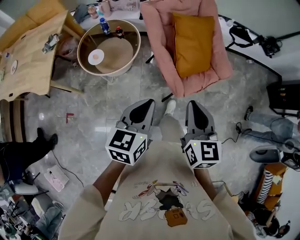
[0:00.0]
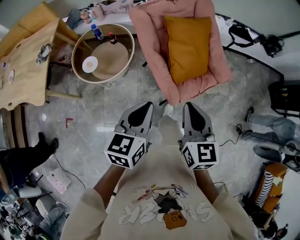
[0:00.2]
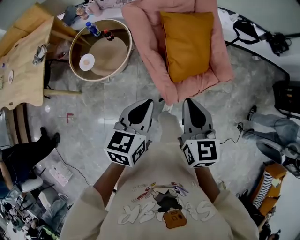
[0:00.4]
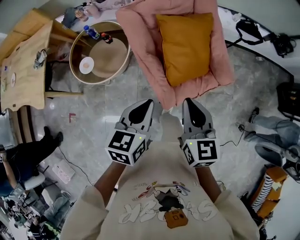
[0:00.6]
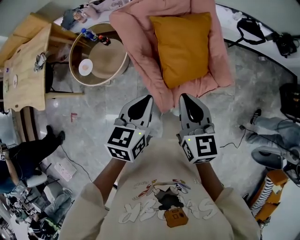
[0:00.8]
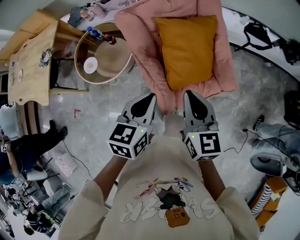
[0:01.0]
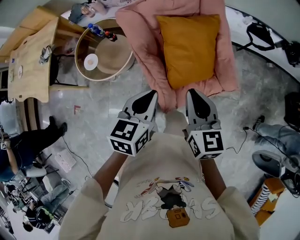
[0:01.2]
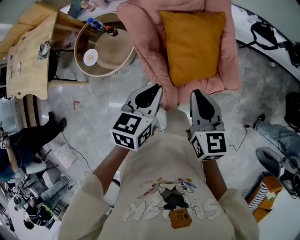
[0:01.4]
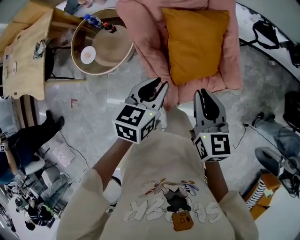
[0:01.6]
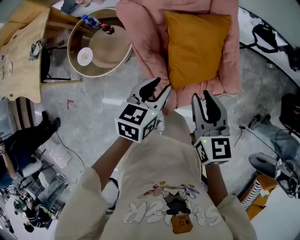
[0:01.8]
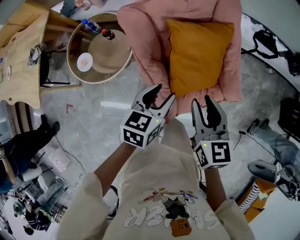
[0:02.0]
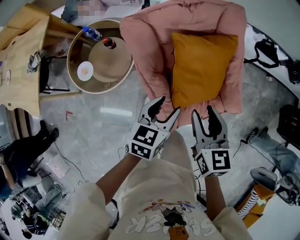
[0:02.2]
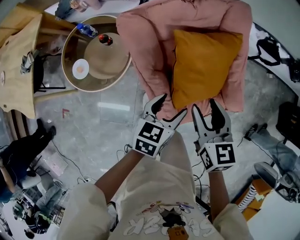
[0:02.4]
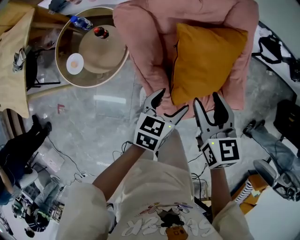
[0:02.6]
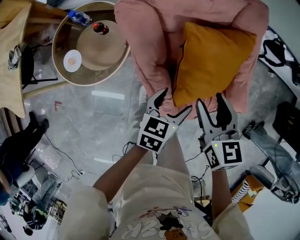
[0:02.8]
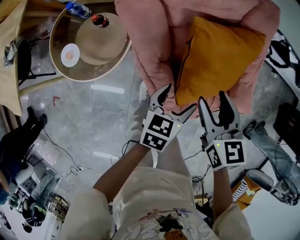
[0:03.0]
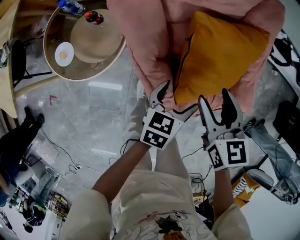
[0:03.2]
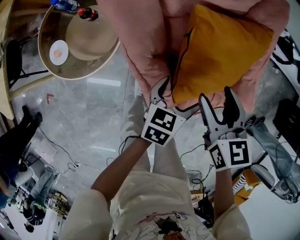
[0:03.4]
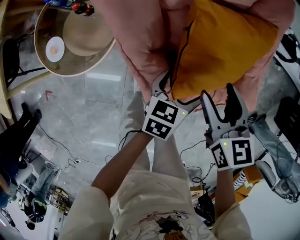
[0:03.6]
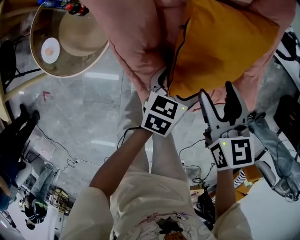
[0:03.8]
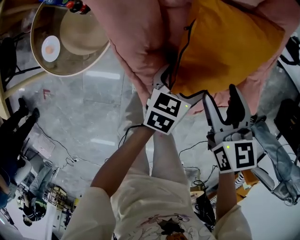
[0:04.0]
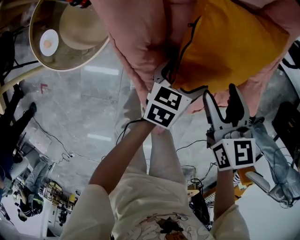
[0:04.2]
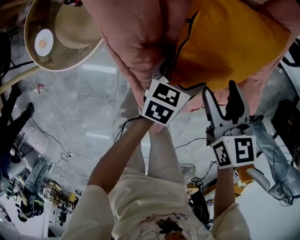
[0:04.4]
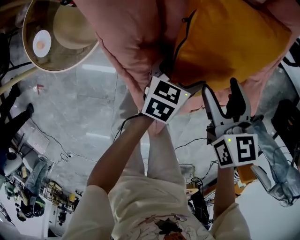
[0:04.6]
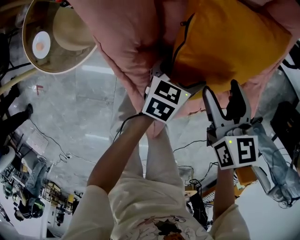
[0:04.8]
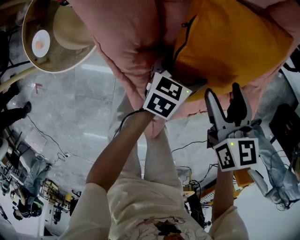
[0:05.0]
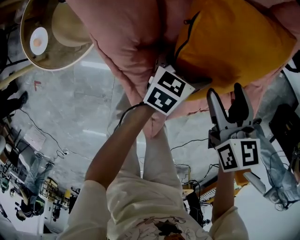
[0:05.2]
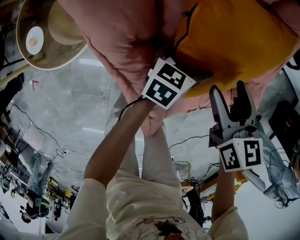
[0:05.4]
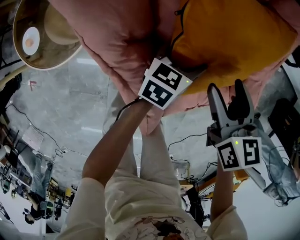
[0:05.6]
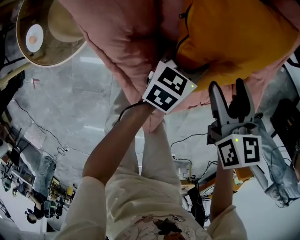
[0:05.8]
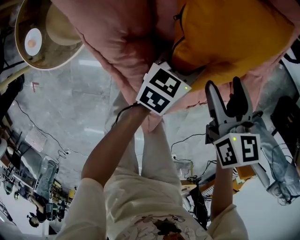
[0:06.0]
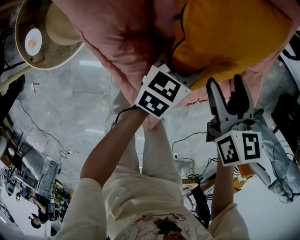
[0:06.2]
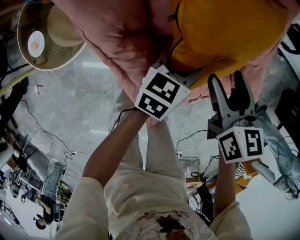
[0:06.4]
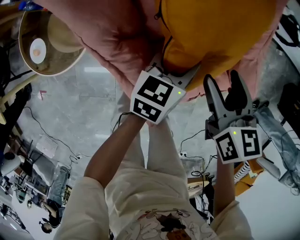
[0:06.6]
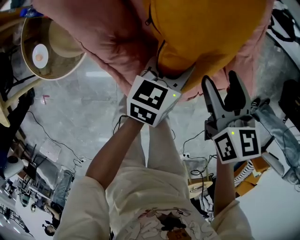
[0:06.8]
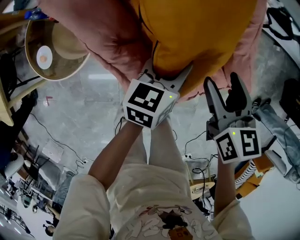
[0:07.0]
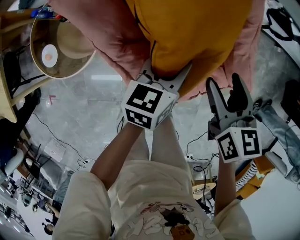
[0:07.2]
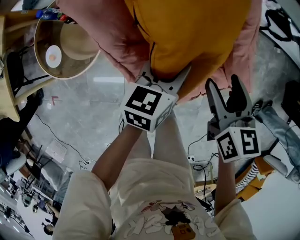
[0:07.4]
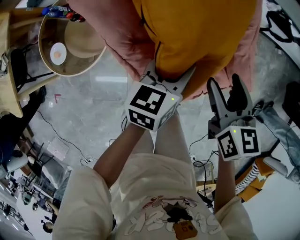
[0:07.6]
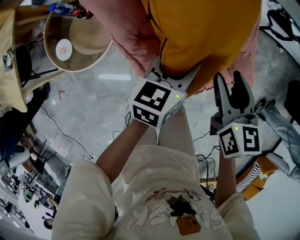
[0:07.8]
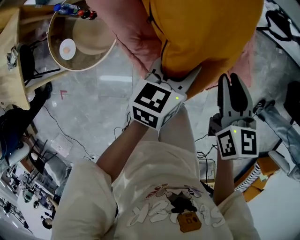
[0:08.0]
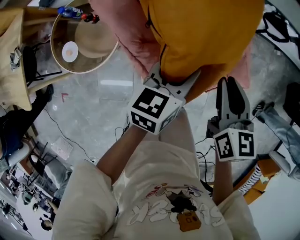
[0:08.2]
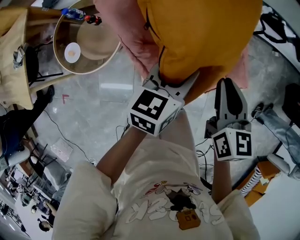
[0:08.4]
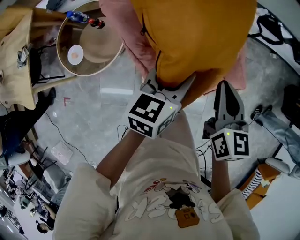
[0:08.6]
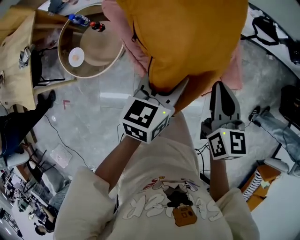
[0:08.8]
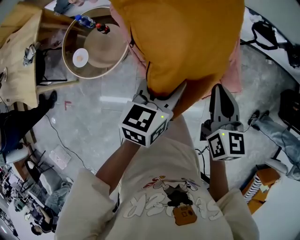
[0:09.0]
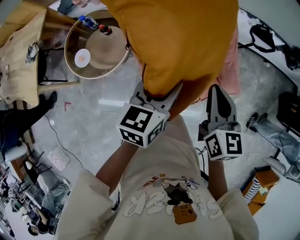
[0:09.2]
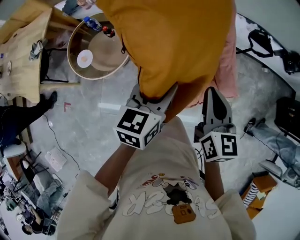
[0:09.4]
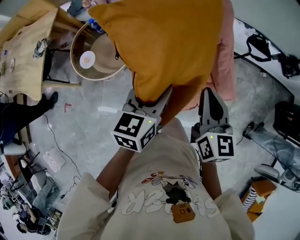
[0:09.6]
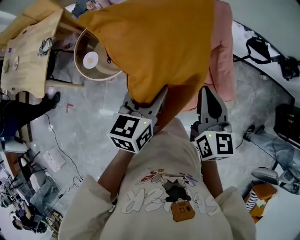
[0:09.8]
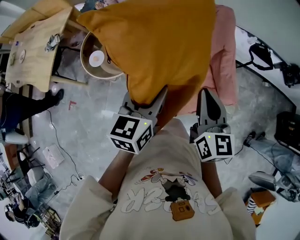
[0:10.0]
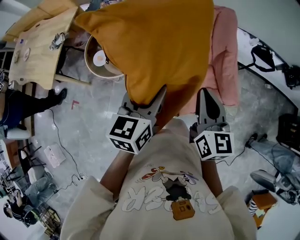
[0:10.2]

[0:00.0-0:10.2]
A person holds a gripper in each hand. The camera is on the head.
0:00.0 to 0:01.4: The two grippers go some 30 cm forward and to the right.
0:01.4 to 0:03.0: The left gripper moves downward and forward, roughly 25 cm, and opens its fingers, while the right gripper is displaced downward, forward and to the left by approximately 25 cm, and opens its fingers.
0:03.0 to 0:04.4: The right gripper goes about 10 cm downward. The left gripper is displaced downward and forward by some 15 cm.
0:04.4 to 0:05.8: The right gripper ends up about 5 cm from where it was, while the left gripper changes place by roughly 5 cm, and closes up.
0:05.8 to 0:07.2: Both grippers move upward, approximately 15 cm.
0:07.2 to 0:08.8: The grippers both shift upward and backward by roughly 20 cm. The right gripper closes.
0:08.8 to 0:10.2: Both grippers travel together backward, upward and to the left, approximately 20 cm. The left gripper changes its angle by roughly 20 degrees.

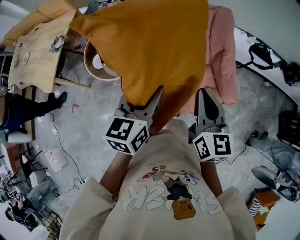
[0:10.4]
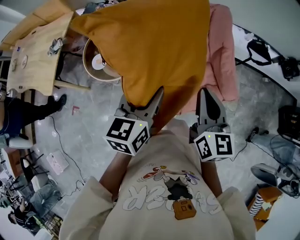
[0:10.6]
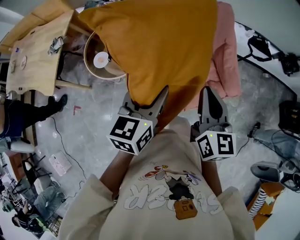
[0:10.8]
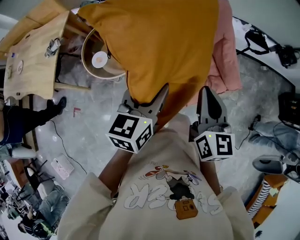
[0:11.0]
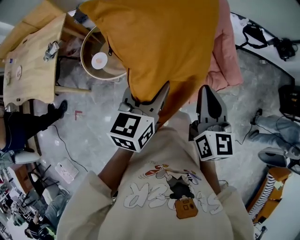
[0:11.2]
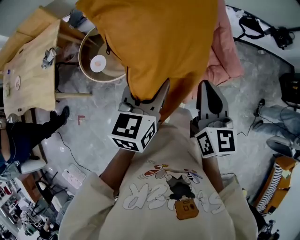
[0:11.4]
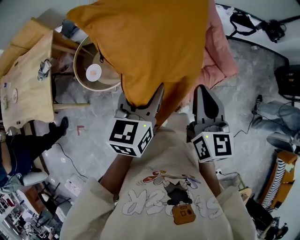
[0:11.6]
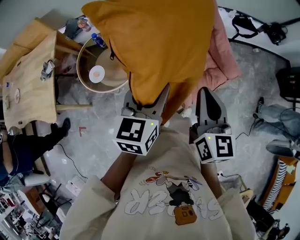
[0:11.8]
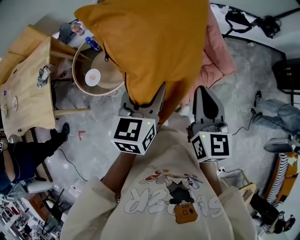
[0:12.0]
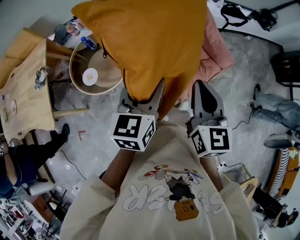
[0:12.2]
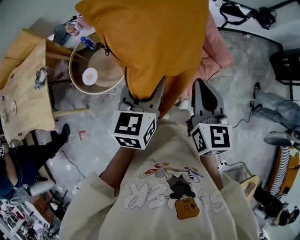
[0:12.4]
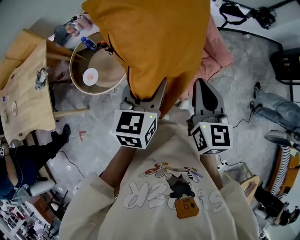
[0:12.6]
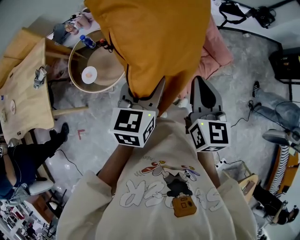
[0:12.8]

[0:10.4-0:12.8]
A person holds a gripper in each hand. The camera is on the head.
0:10.4 to 0:11.6: The left gripper heads to the left, covering some 10 cm. Meanwhile the right gripper goes some 10 cm to the left and backward.
0:11.6 to 0:12.8: There are only small adjustments of the grippers.

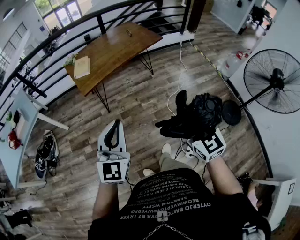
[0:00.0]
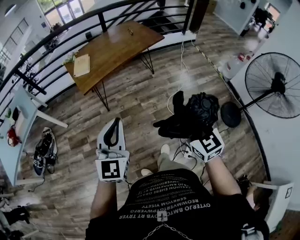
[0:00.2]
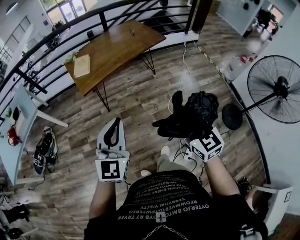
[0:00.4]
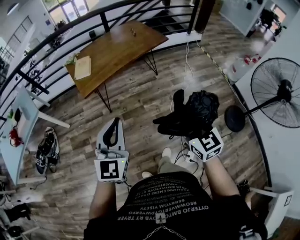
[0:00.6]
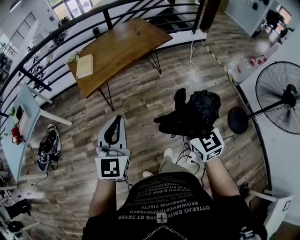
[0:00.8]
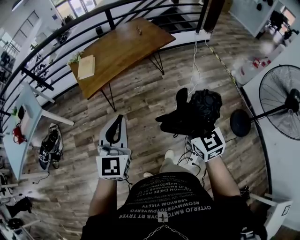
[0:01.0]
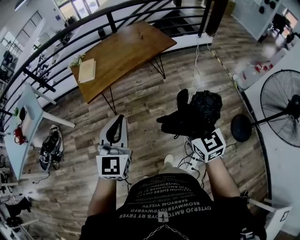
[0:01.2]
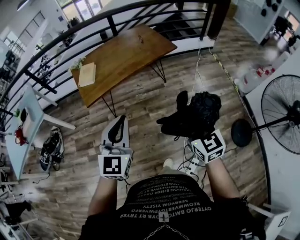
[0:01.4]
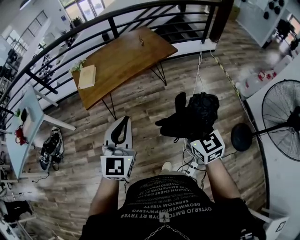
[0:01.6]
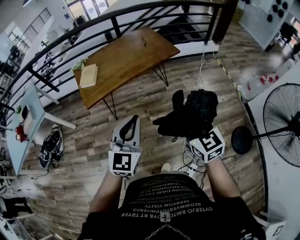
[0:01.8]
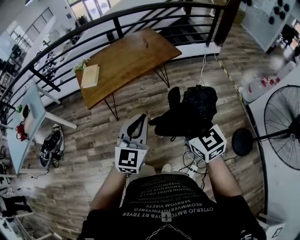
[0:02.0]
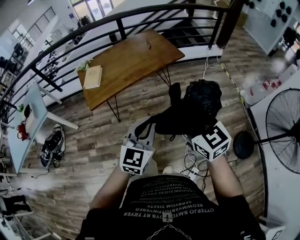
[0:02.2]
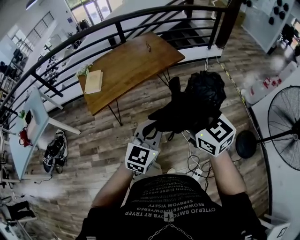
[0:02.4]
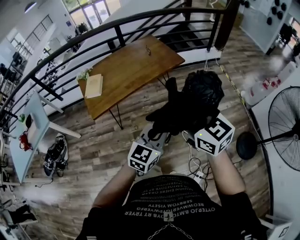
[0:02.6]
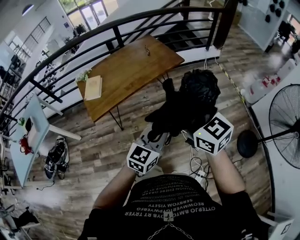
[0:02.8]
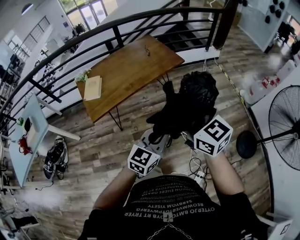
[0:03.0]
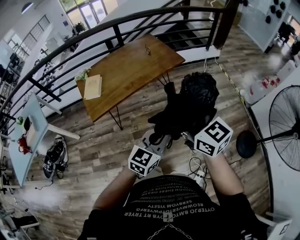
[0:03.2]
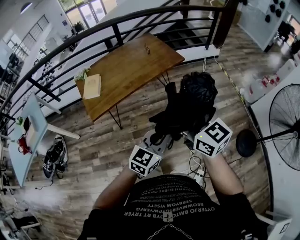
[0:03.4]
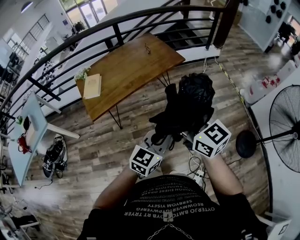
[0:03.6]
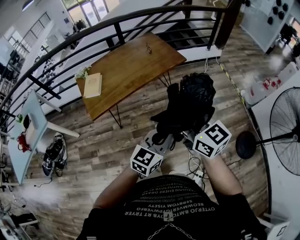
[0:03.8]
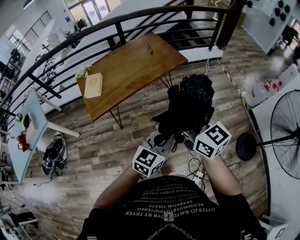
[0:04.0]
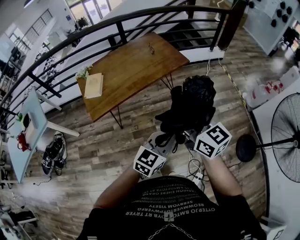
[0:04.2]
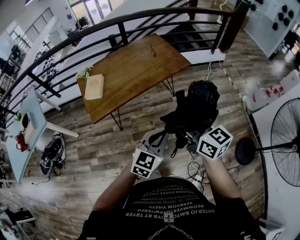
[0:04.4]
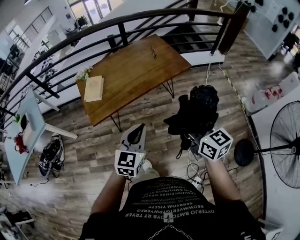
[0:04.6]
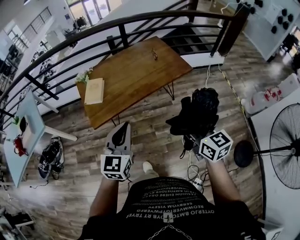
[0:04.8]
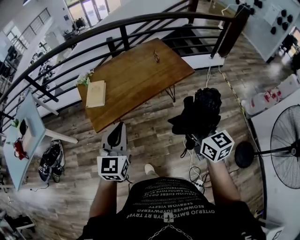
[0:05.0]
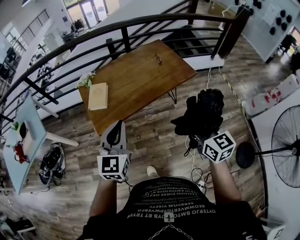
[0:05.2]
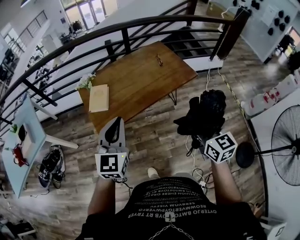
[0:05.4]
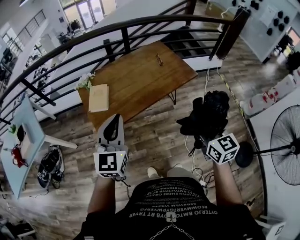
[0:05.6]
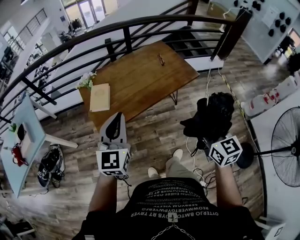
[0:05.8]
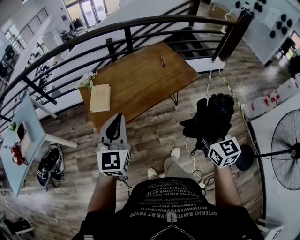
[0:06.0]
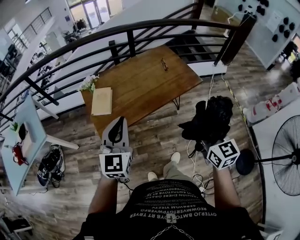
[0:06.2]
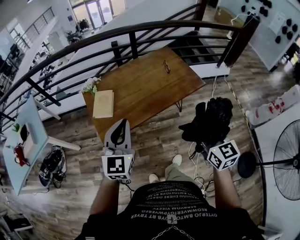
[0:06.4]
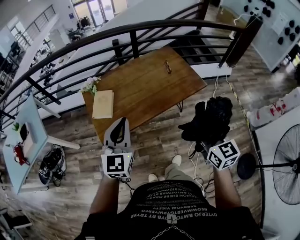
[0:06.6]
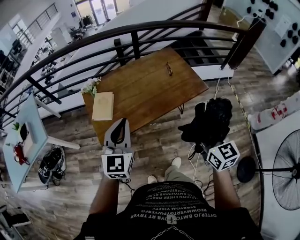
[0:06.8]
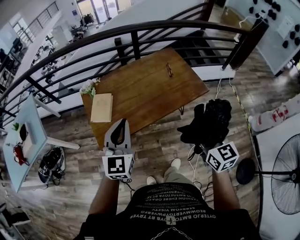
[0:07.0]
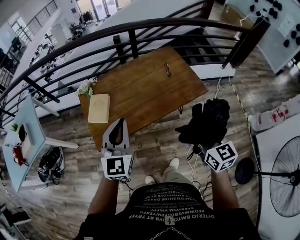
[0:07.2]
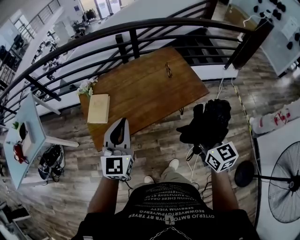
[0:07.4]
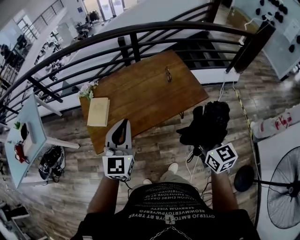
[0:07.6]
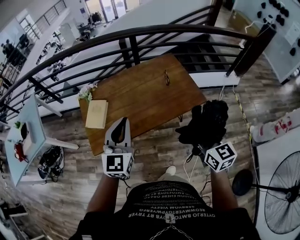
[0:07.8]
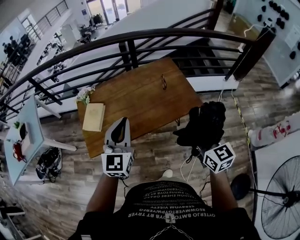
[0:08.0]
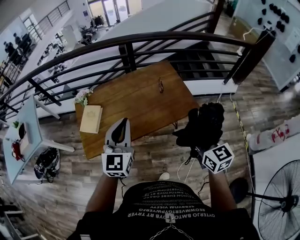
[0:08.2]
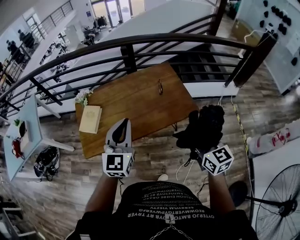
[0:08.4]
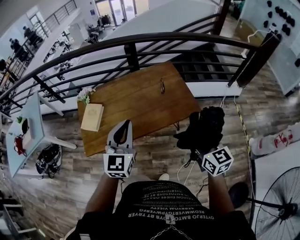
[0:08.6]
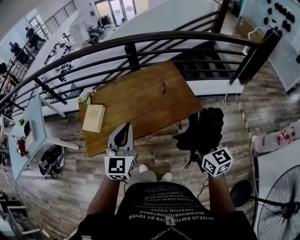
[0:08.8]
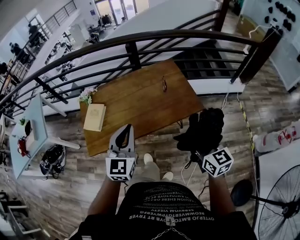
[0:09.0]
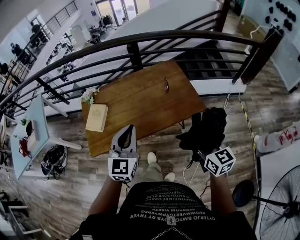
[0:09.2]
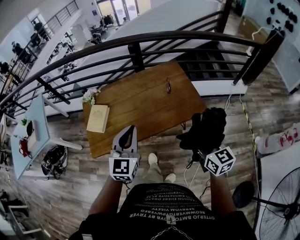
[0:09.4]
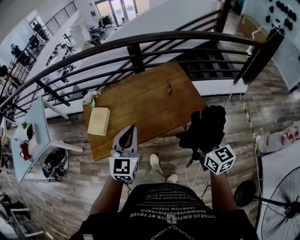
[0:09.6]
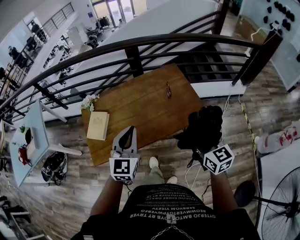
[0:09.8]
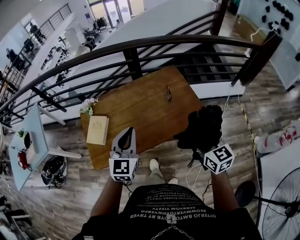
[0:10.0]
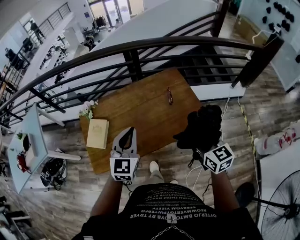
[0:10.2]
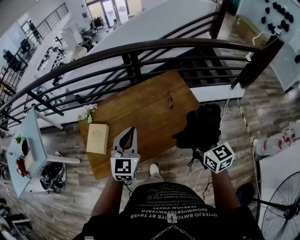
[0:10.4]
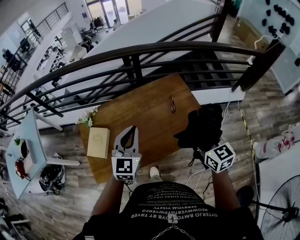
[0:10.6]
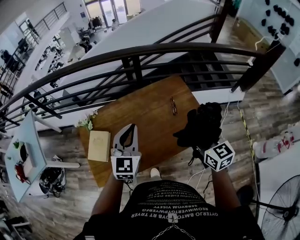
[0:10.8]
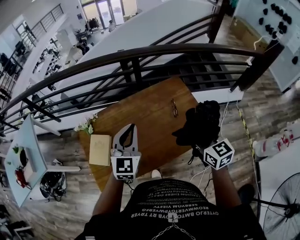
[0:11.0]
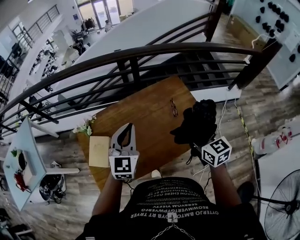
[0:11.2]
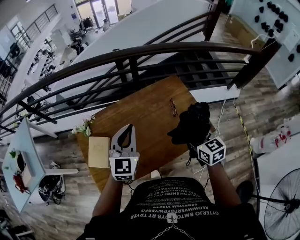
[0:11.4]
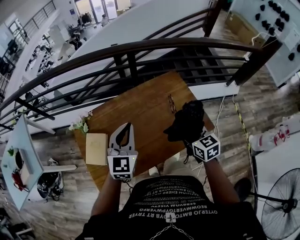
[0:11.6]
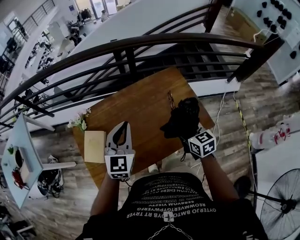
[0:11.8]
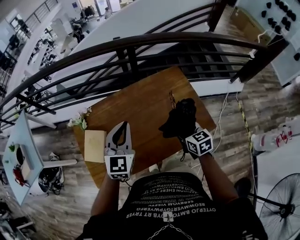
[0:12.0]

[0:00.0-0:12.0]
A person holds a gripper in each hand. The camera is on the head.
0:00.0 to 0:01.6: Both grippers move forward and to the right, some 25 cm.
0:01.6 to 0:03.0: The left gripper shifts some 10 cm to the right and downward, and swivels roughly 30 degrees, while the right gripper goes roughly 15 cm forward, to the left and upward.
0:03.0 to 0:04.4: The right gripper travels forward and downward by about 10 cm. Meanwhile the left gripper travels forward by about 5 cm.
0:04.4 to 0:06.0: The left gripper heads to the left and forward, covering roughly 30 cm, and turns by about 30 degrees; the right gripper goes about 10 cm forward, and swivels about 30 degrees.
0:06.0 to 0:07.6: Both grippers move forward and to the right, about 20 cm.
0:07.6 to 0:09.0: The grippers both shift to the right by some 10 cm.
0:09.0 to 0:10.4: The grippers both shift forward by roughly 15 cm.
0:10.4 to 0:12.0: The right gripper heads downward and forward, covering some 20 cm. The left gripper travels forward by roughly 10 cm.
